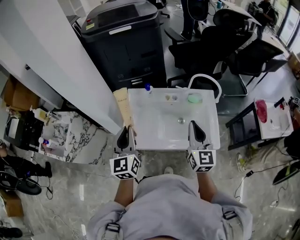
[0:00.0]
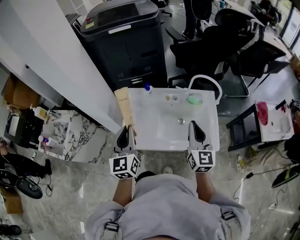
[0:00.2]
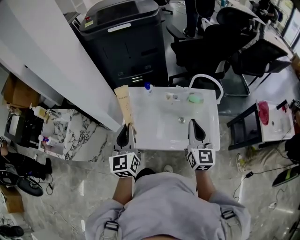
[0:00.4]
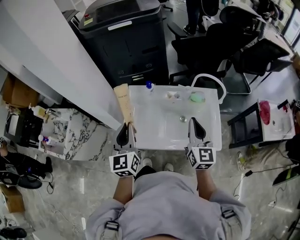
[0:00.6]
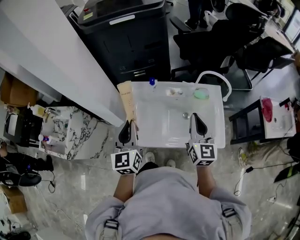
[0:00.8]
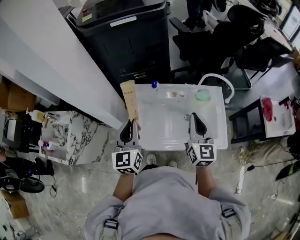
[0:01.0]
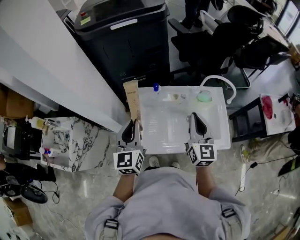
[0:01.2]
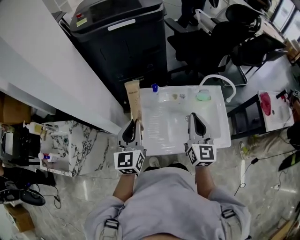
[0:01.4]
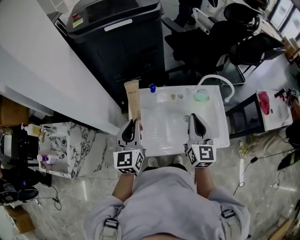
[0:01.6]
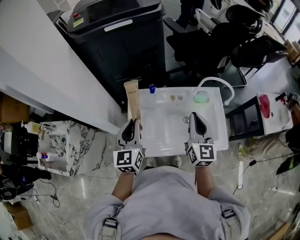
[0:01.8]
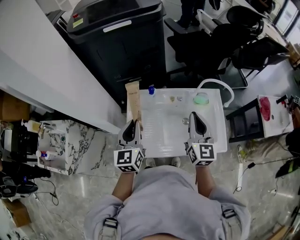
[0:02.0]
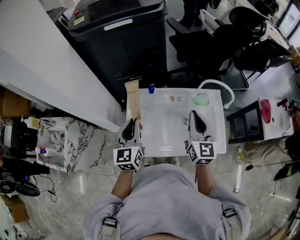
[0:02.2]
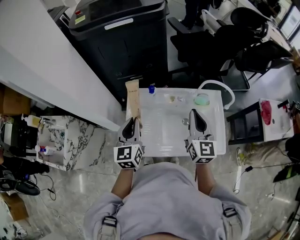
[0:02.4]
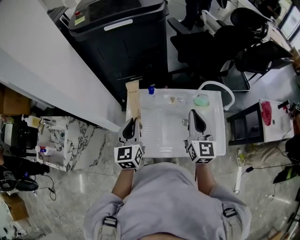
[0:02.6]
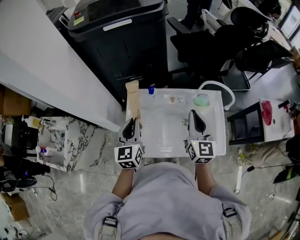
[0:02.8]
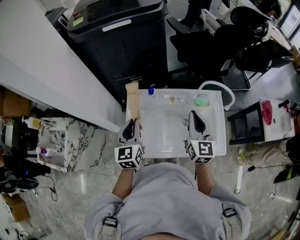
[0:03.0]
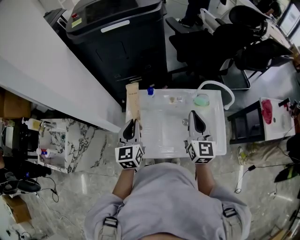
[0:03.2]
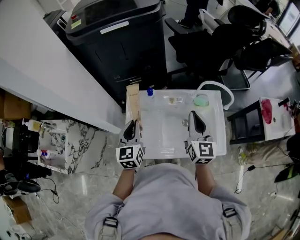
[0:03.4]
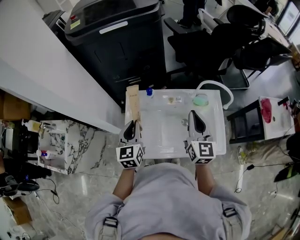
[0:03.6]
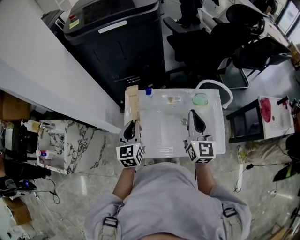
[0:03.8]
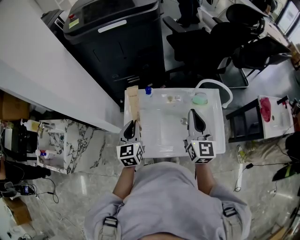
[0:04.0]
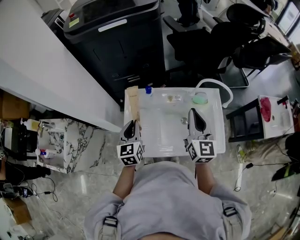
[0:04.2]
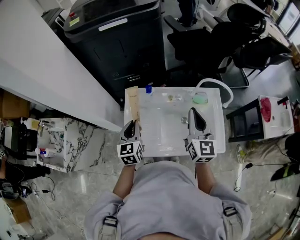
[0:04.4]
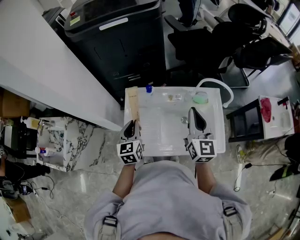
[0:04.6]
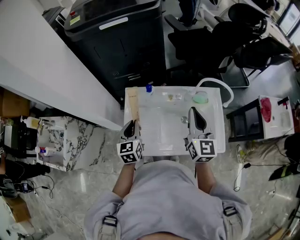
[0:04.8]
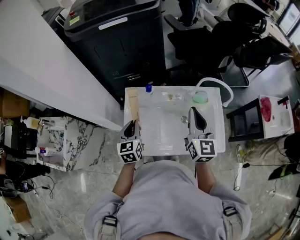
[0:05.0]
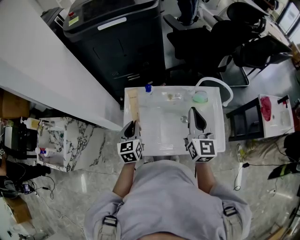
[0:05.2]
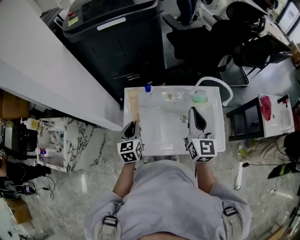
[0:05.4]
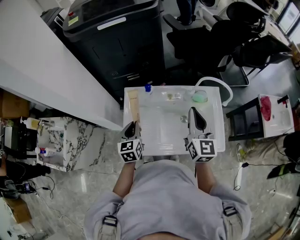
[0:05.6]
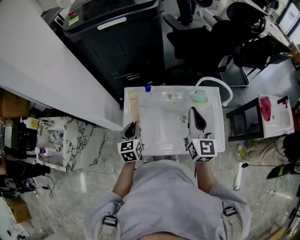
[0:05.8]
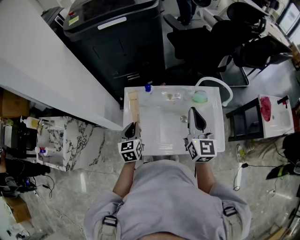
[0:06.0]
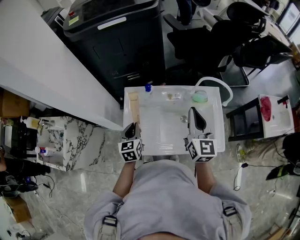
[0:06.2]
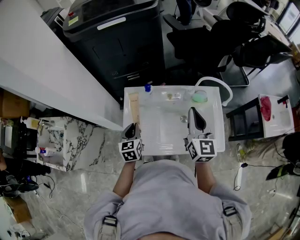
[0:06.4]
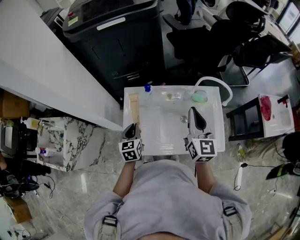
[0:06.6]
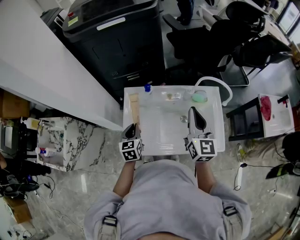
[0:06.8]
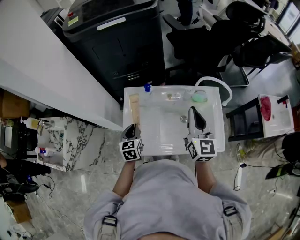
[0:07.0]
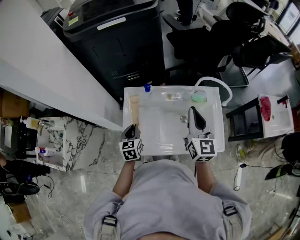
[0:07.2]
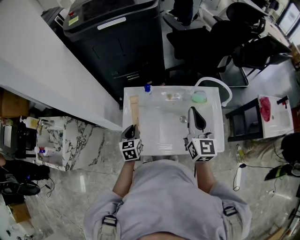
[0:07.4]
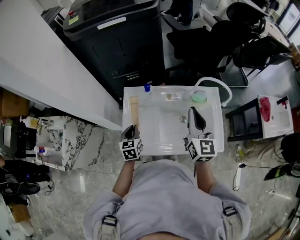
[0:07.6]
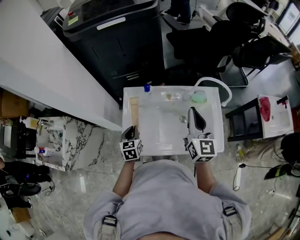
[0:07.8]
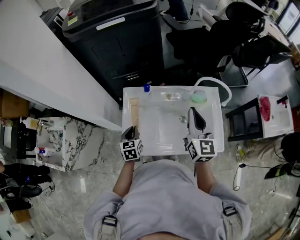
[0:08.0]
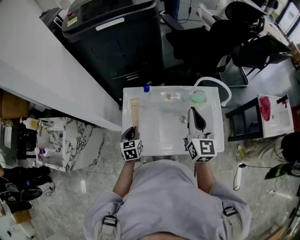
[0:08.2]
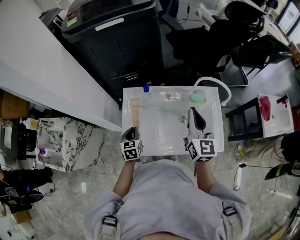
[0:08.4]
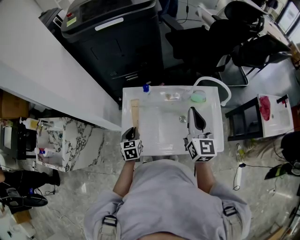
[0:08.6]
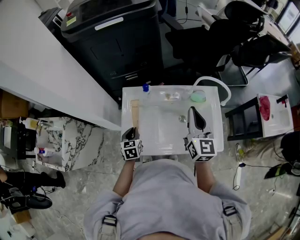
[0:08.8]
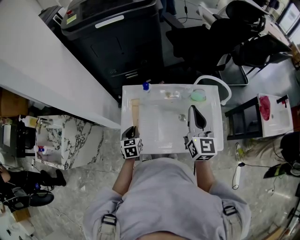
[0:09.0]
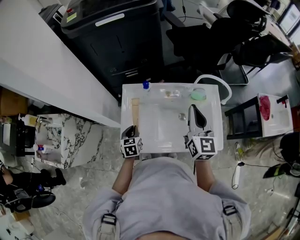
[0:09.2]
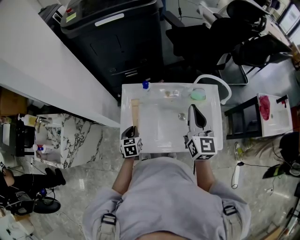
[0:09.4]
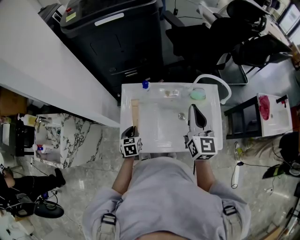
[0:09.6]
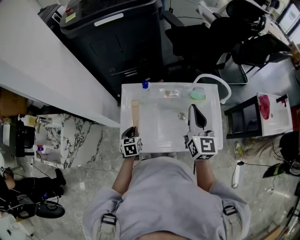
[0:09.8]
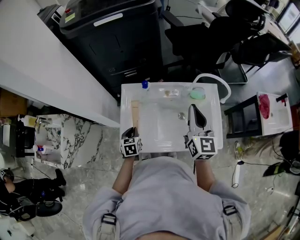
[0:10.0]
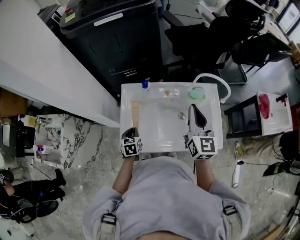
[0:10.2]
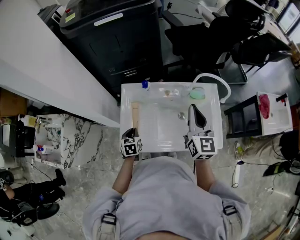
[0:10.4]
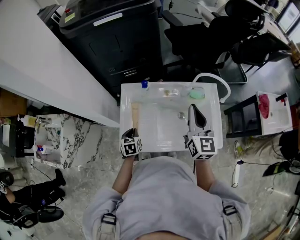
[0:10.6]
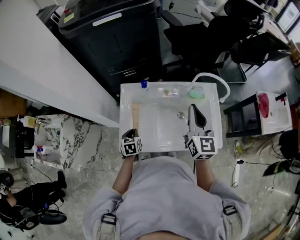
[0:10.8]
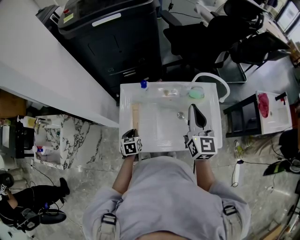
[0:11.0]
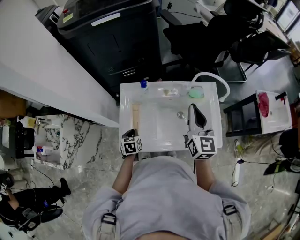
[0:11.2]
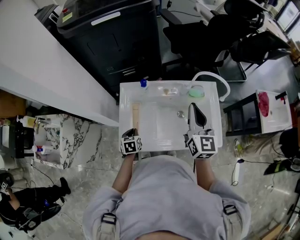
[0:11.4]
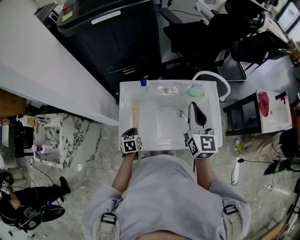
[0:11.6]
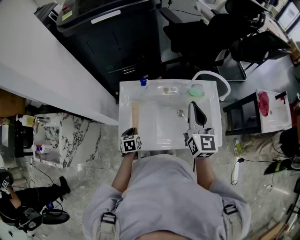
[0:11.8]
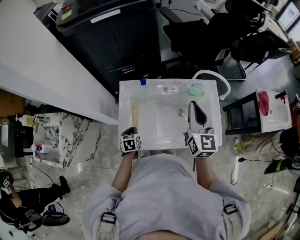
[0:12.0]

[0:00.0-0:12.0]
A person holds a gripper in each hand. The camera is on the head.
0:00.0 to 0:01.6: The right gripper travels forward and to the left by approximately 10 cm. Meanwhile the left gripper heads forward, covering some 15 cm.
0:01.6 to 0:03.0: The left gripper moves approximately 5 cm, while the right gripper shifts by roughly 5 cm.
0:03.0 to 0:04.4: The left gripper moves downward, roughly 5 cm.
0:04.4 to 0:06.0: The left gripper shifts by some 5 cm.
0:06.0 to 0:07.6: There are only small adjustments of the grippers.
0:07.6 to 0:09.0: The grippers make only small movements.
0:09.0 to 0:10.4: The grippers move only a little.
0:10.4 to 0:12.0: The grippers make only small movements.

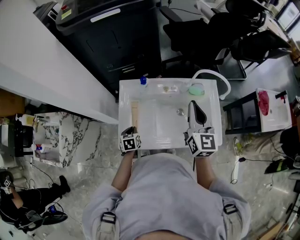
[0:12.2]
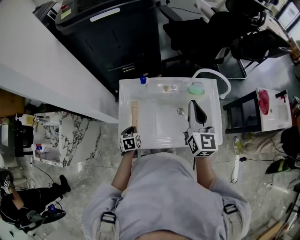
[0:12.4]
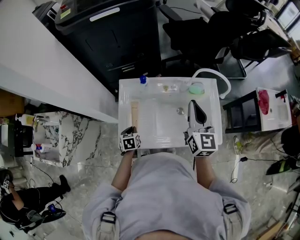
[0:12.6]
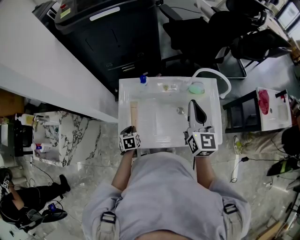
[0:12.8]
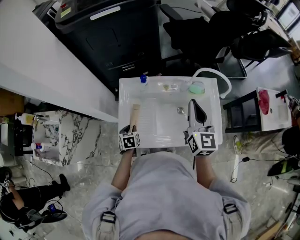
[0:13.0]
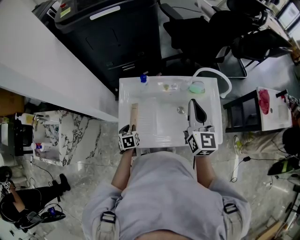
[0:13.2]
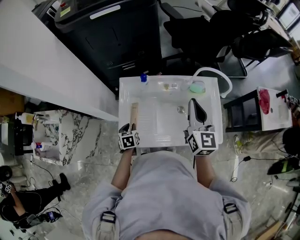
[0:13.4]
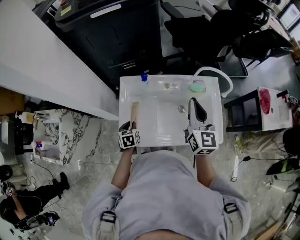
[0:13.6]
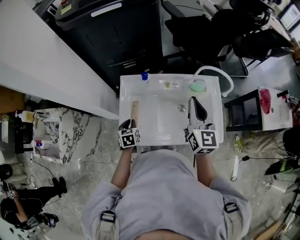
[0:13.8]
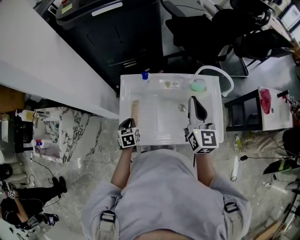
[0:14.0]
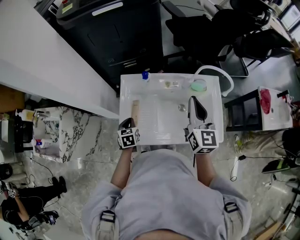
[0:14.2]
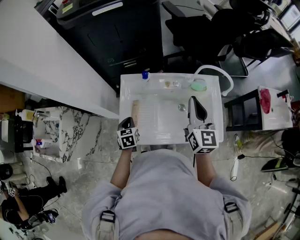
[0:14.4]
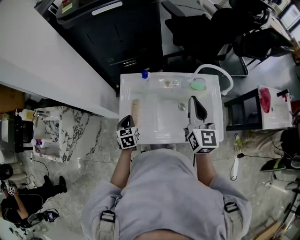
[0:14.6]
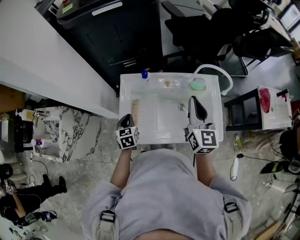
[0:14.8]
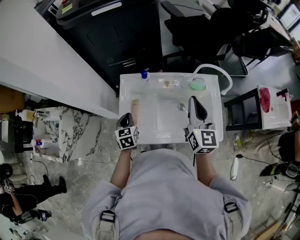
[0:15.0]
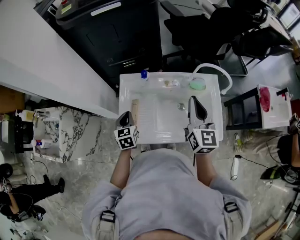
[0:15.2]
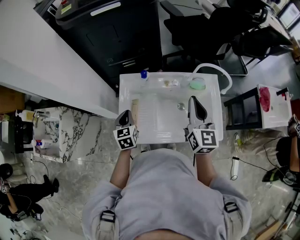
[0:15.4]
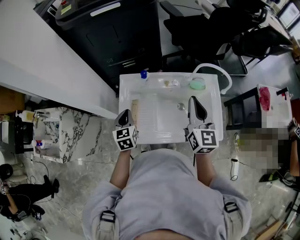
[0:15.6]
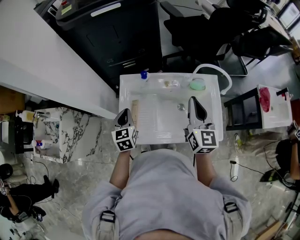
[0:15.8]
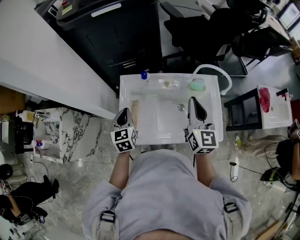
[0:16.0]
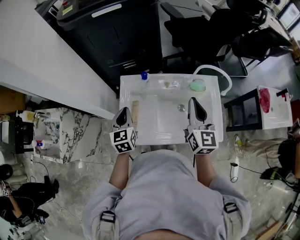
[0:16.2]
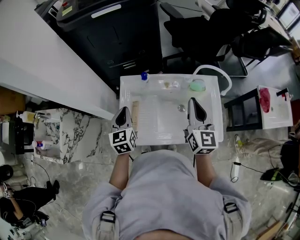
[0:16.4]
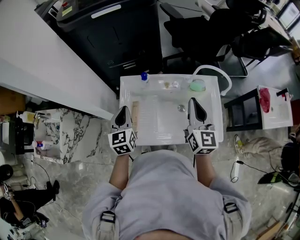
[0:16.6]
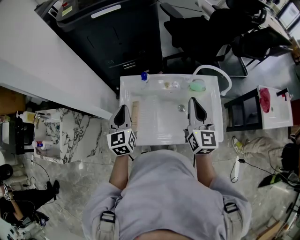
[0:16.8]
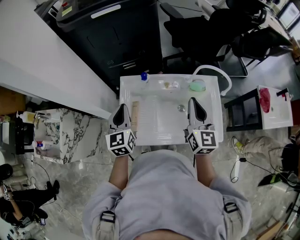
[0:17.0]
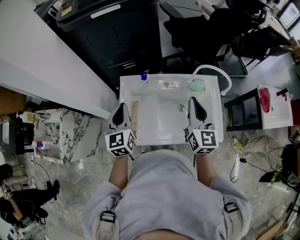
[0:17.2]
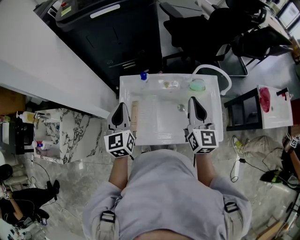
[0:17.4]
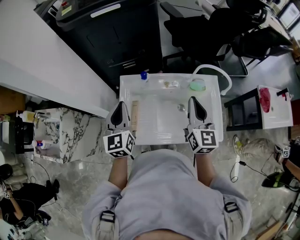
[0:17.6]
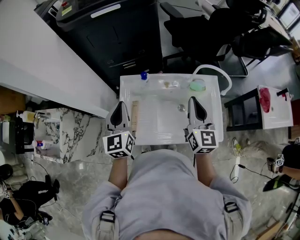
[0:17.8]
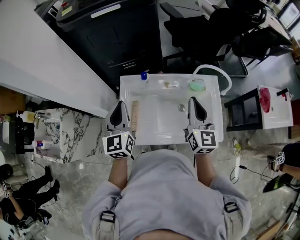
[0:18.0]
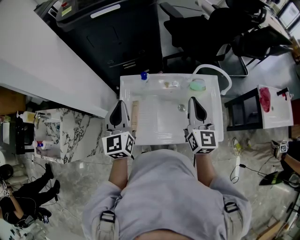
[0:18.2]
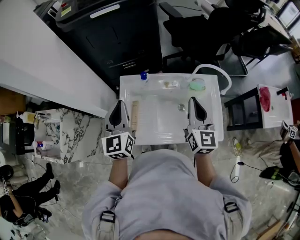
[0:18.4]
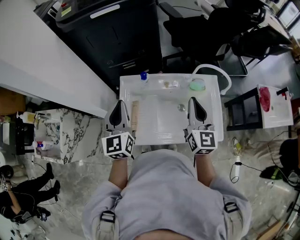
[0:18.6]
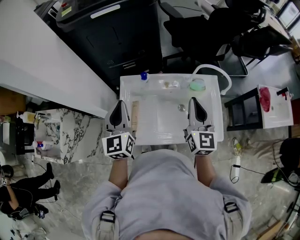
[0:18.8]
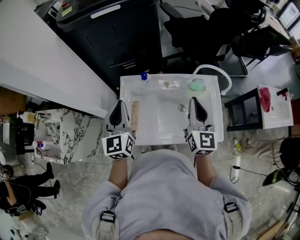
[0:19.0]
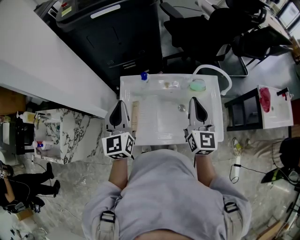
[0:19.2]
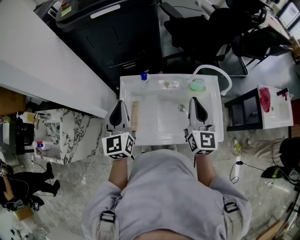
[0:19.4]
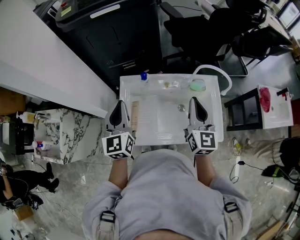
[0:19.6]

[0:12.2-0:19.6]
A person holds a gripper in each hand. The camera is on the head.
0:12.2 to 0:13.6: The grippers make only small movements.
0:13.6 to 0:15.2: The left gripper shifts some 10 cm upward.
0:15.2 to 0:16.6: The left gripper moves upward, approximately 10 cm.
0:16.6 to 0:18.2: The left gripper is displaced upward by about 10 cm.
0:18.2 to 0:19.6: Neither gripper changes place.

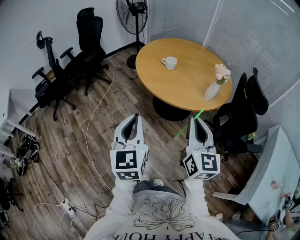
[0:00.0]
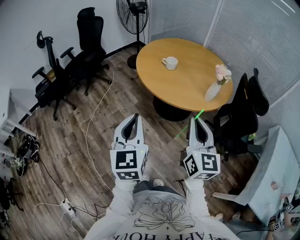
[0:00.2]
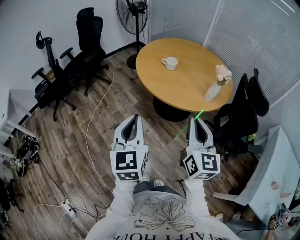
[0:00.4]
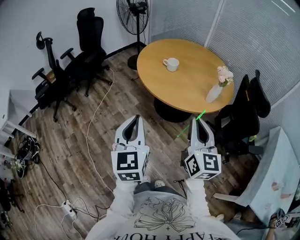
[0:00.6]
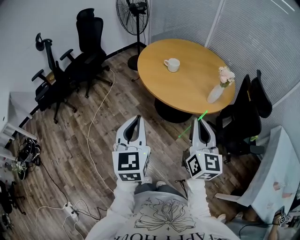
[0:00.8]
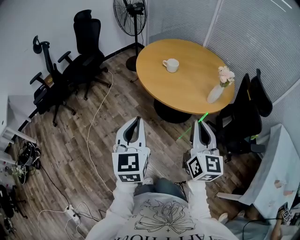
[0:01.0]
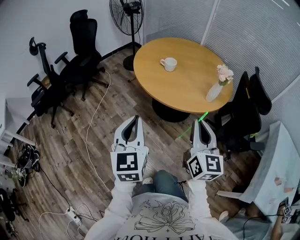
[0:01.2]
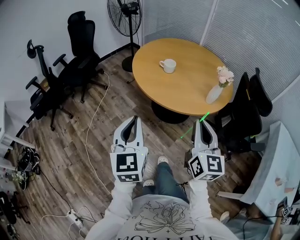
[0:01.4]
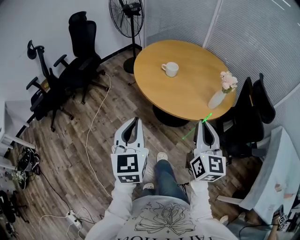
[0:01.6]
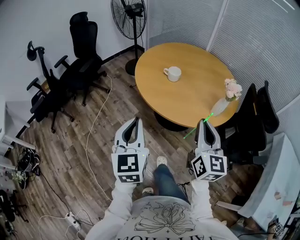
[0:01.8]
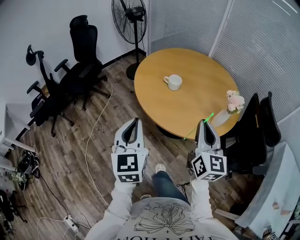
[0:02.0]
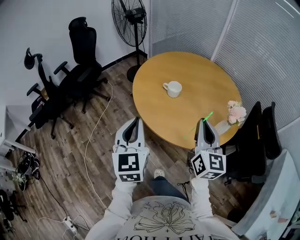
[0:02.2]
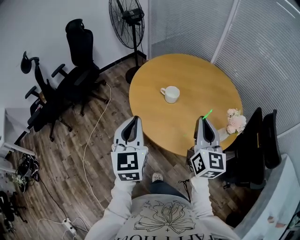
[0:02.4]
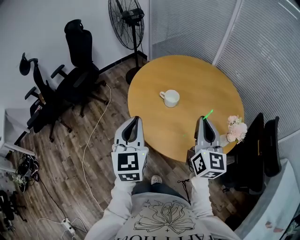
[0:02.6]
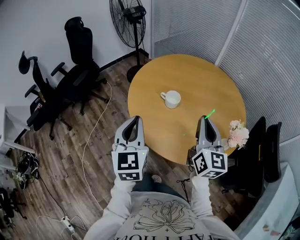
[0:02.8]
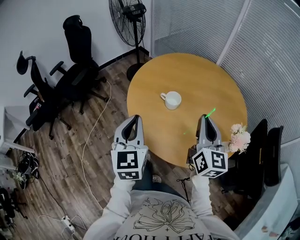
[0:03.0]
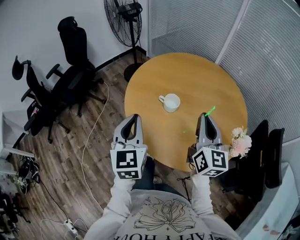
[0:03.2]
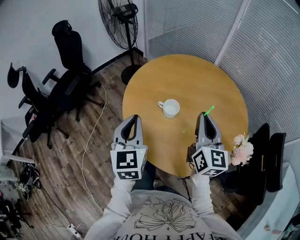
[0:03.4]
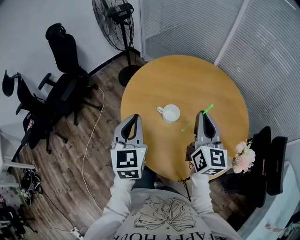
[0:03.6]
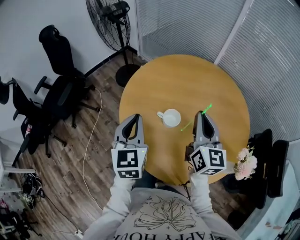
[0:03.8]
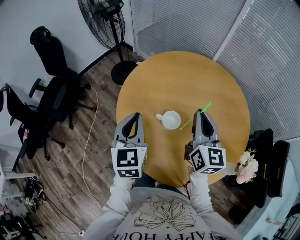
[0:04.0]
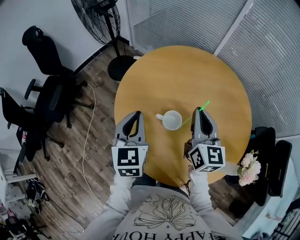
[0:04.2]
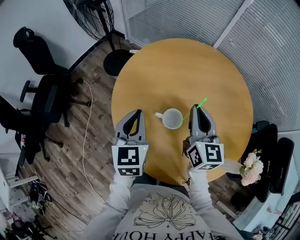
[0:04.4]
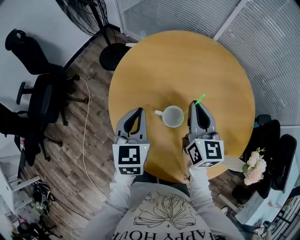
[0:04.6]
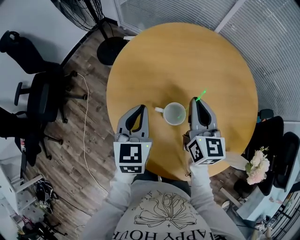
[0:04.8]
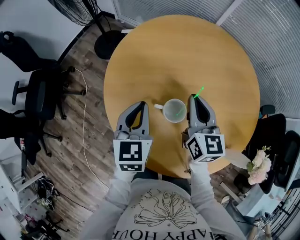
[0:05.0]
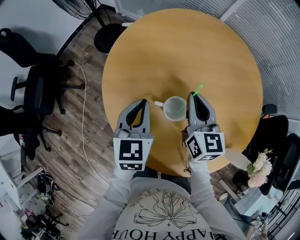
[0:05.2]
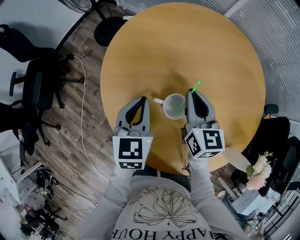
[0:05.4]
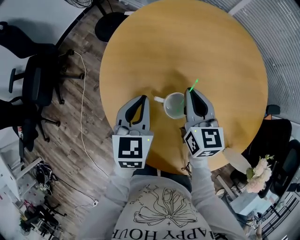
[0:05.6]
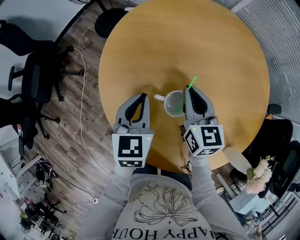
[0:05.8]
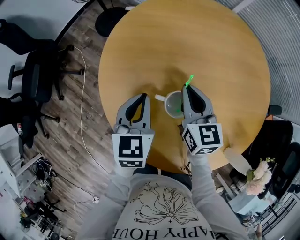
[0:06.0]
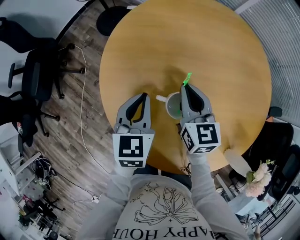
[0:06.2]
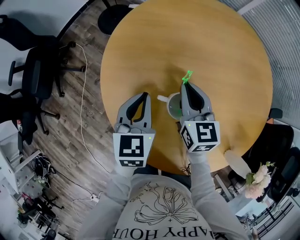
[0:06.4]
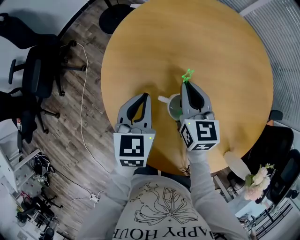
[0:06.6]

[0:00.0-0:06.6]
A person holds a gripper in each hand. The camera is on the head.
0:00.0 to 0:01.6: The two grippers go about 10 cm forward.
0:01.6 to 0:03.2: Both grippers move forward, roughly 40 cm.
0:03.2 to 0:05.0: The two grippers go about 35 cm forward and downward. The left gripper turns by about 30 degrees.
0:05.0 to 0:06.6: Both grippers move downward, about 10 cm.
